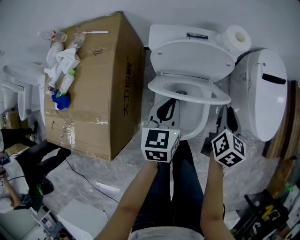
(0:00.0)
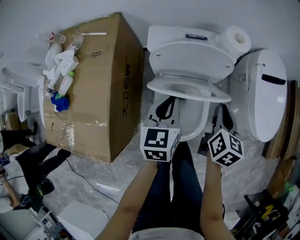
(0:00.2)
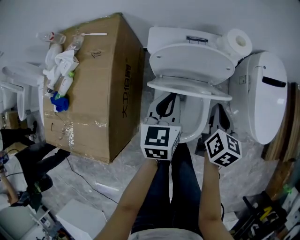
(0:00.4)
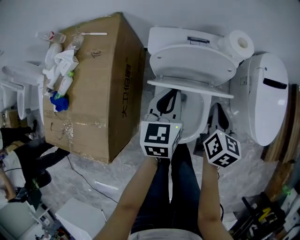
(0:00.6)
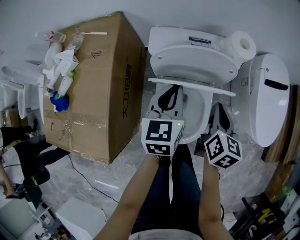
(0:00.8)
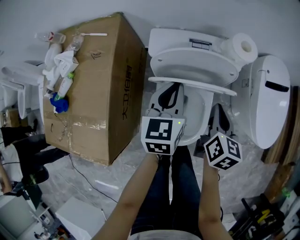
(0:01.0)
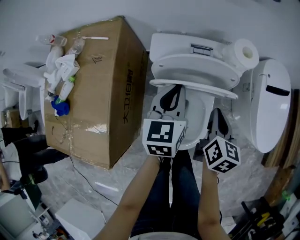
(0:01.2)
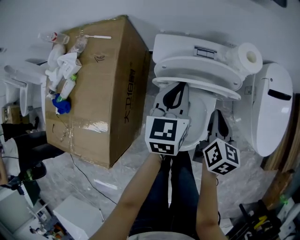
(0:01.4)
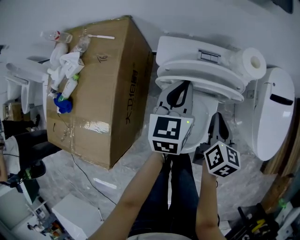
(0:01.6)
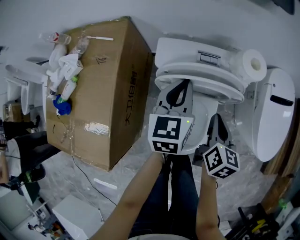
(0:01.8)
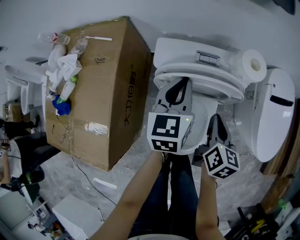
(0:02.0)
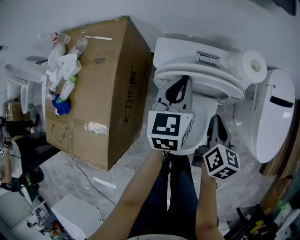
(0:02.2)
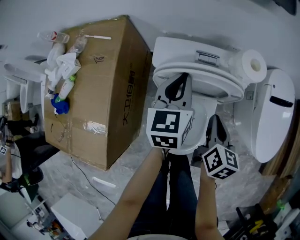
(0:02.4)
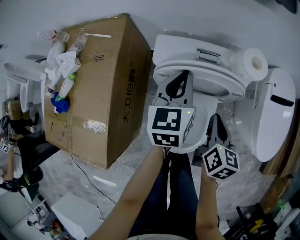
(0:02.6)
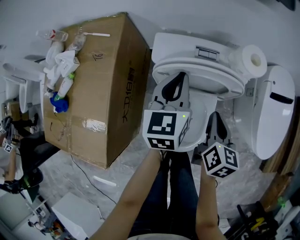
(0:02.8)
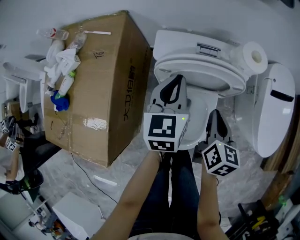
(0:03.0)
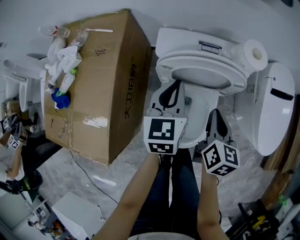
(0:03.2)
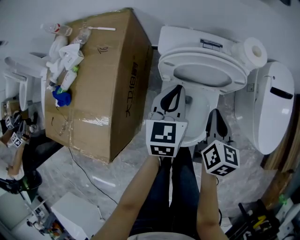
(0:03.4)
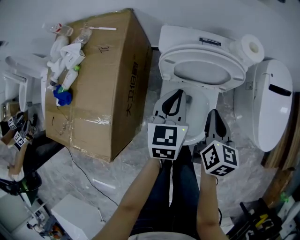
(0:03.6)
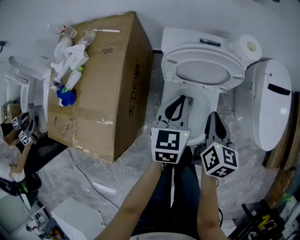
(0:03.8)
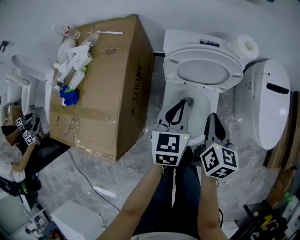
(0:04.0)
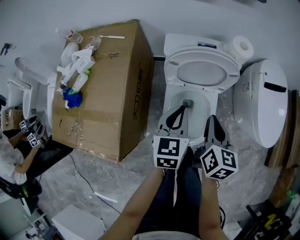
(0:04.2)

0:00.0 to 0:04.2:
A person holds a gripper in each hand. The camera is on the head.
0:00.0 to 0:01.4: The right gripper heads to the left, covering some 5 cm, while the left gripper shifts roughly 10 cm forward.
0:01.4 to 0:02.8: The grippers move only a little.
0:02.8 to 0:04.2: The left gripper shifts about 20 cm backward, while the right gripper heads backward and upward, covering some 15 cm.

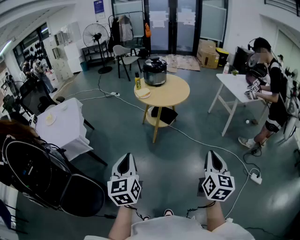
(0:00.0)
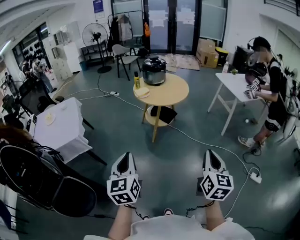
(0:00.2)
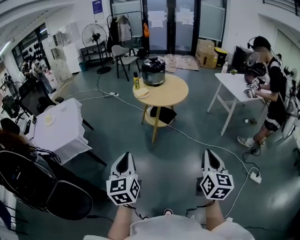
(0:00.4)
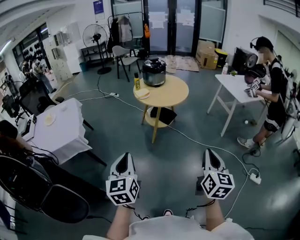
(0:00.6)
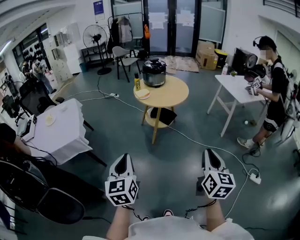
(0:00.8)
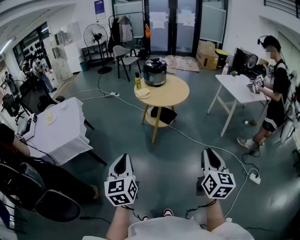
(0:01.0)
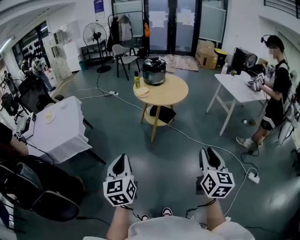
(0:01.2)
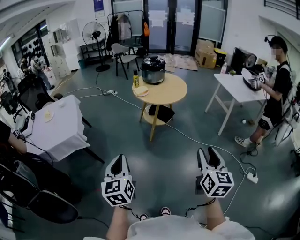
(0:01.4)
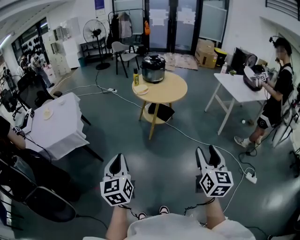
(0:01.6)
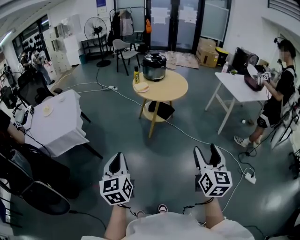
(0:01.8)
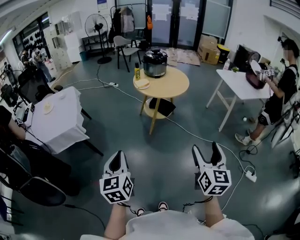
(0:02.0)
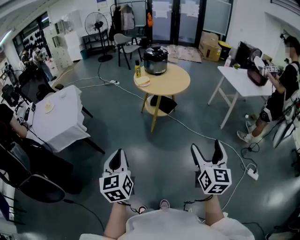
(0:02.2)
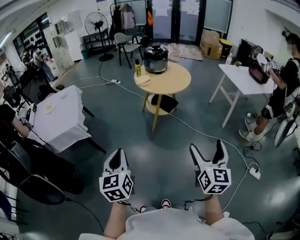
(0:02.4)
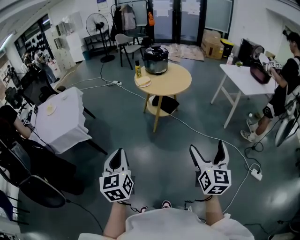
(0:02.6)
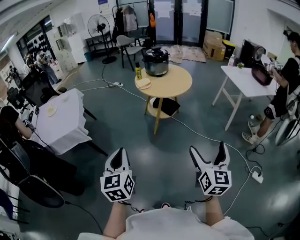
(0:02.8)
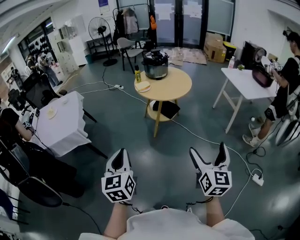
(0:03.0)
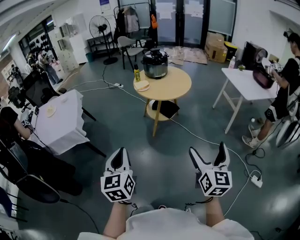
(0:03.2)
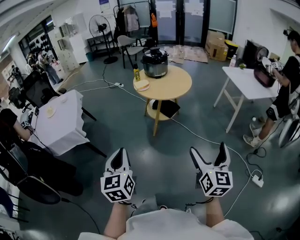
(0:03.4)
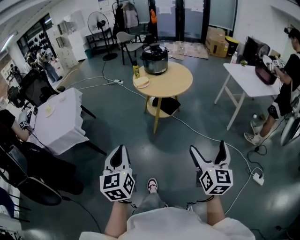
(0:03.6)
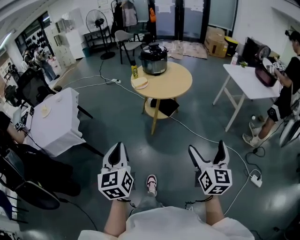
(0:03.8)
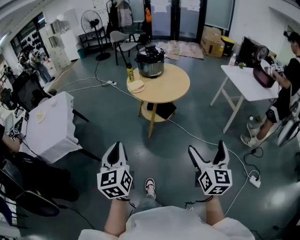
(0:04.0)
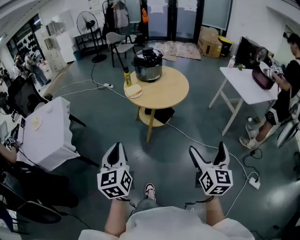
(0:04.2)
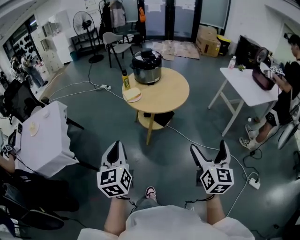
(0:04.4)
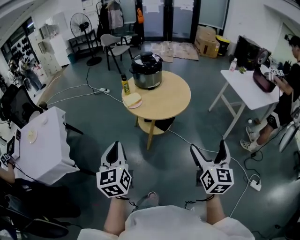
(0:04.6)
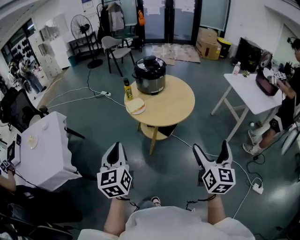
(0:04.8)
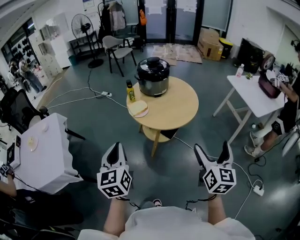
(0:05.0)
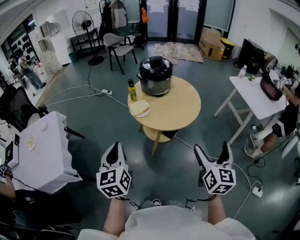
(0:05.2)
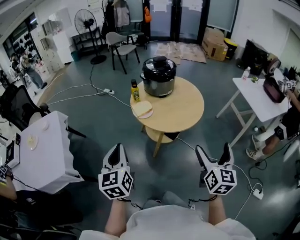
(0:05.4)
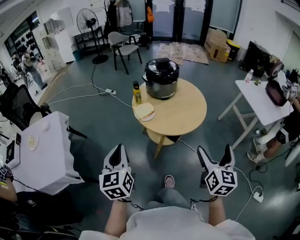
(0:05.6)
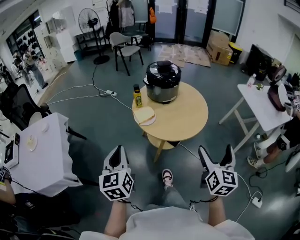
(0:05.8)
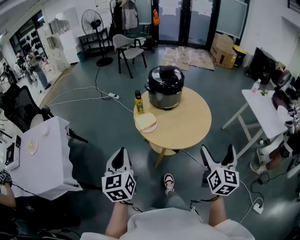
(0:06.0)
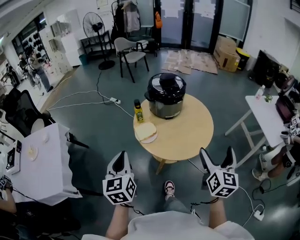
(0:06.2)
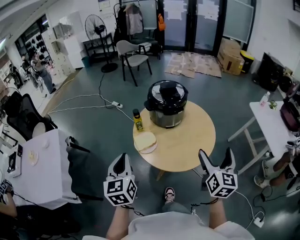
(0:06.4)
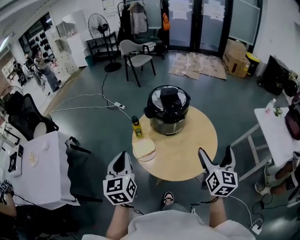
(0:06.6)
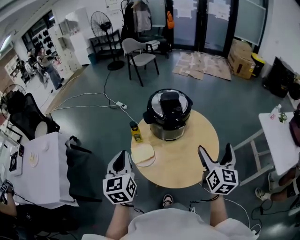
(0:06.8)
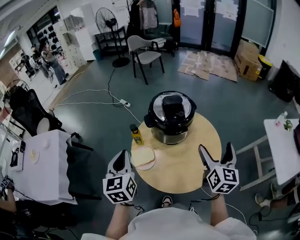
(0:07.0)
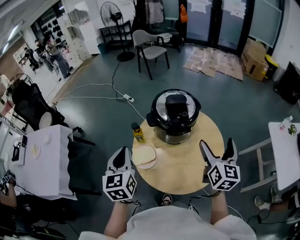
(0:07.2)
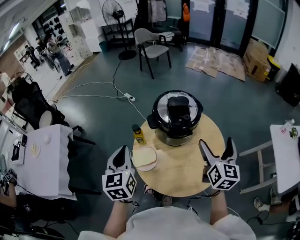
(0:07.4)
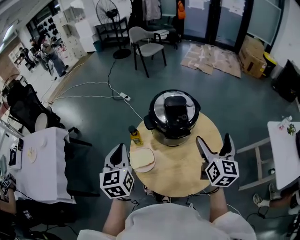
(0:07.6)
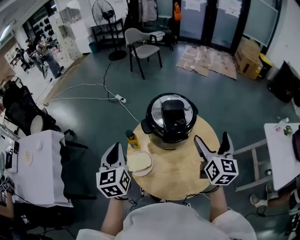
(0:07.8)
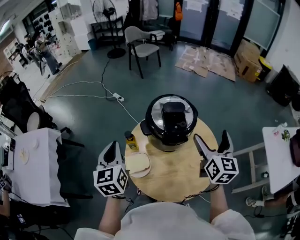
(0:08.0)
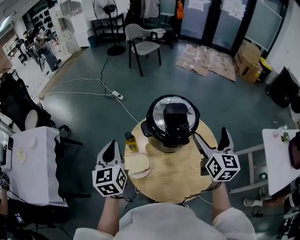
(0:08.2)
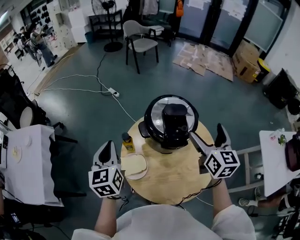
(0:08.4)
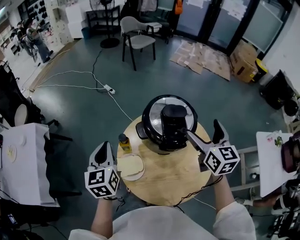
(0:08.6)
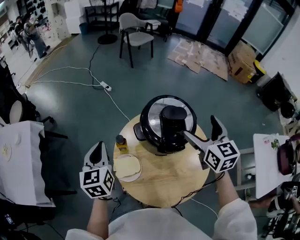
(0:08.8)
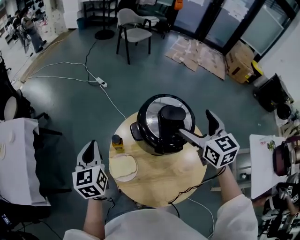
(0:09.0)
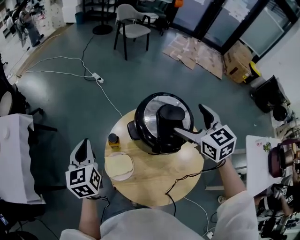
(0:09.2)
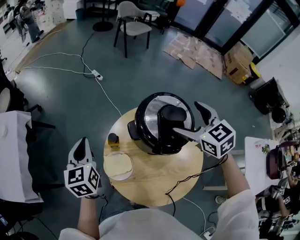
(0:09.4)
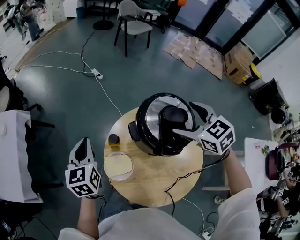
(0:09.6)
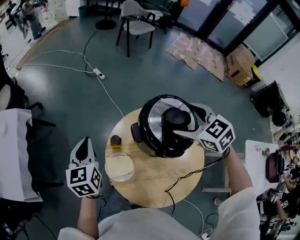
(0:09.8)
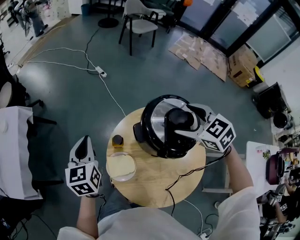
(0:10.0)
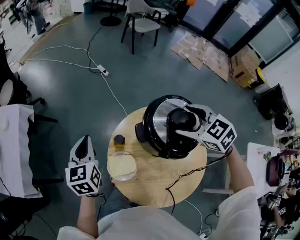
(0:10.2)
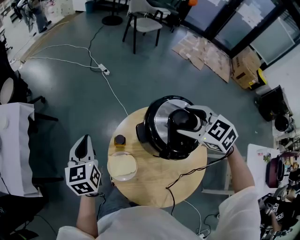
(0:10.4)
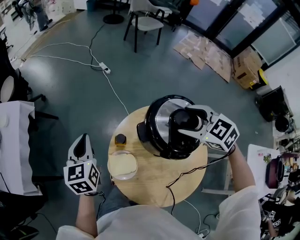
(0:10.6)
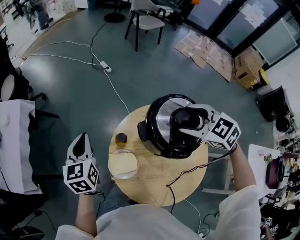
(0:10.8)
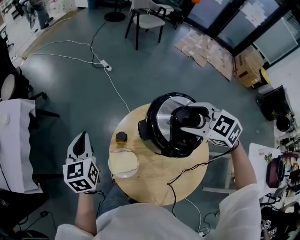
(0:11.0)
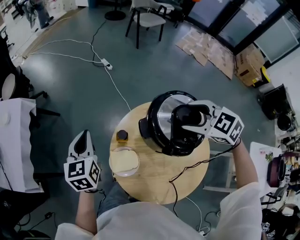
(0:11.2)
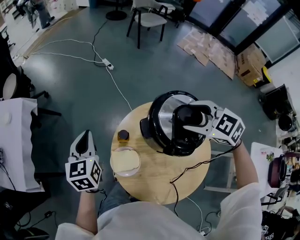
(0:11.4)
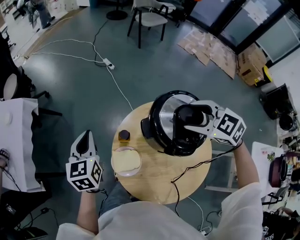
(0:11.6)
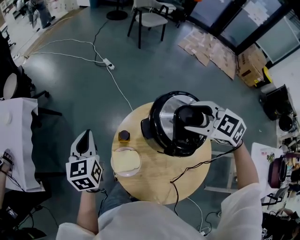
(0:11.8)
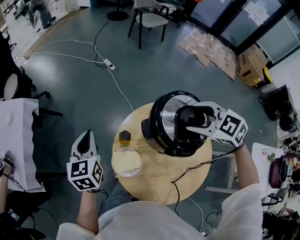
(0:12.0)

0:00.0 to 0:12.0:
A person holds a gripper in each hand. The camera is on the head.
0:00.0 to 0:01.6: The right gripper opens up.
0:01.6 to 0:03.0: The two grippers go roughly 5 cm to the right. The right gripper opens.
0:03.0 to 0:04.4: The two grippers go approximately 25 cm forward.
0:04.4 to 0:06.0: The two grippers go roughly 25 cm forward.
0:06.0 to 0:07.6: The grippers both shift forward by about 35 cm.
0:07.6 to 0:09.0: The left gripper is displaced forward, to the left and downward by about 15 cm; the right gripper travels forward and to the left by approximately 15 cm, and turns by roughly 30 degrees.
0:09.0 to 0:10.4: The left gripper shifts by approximately 5 cm, while the right gripper heads forward, downward and to the left, covering approximately 10 cm, turns by approximately 50 degrees, and closes its fingers.
0:10.4 to 0:12.0: The grippers stay close to where they were, moving slightly.

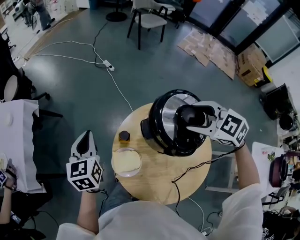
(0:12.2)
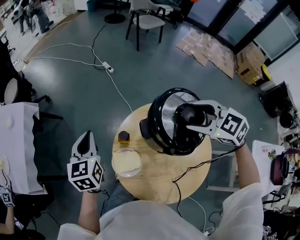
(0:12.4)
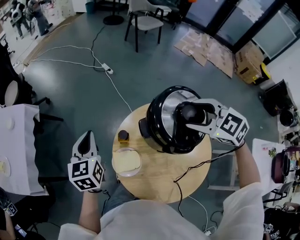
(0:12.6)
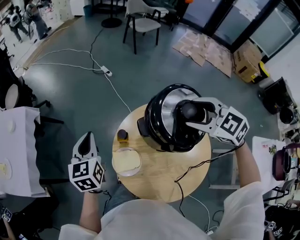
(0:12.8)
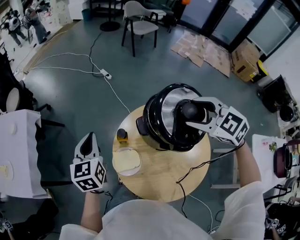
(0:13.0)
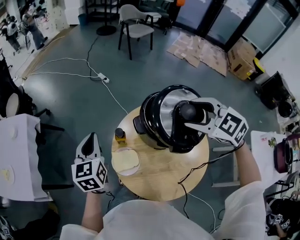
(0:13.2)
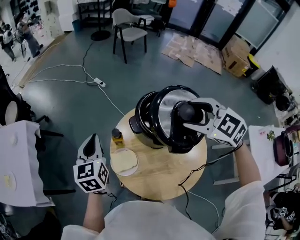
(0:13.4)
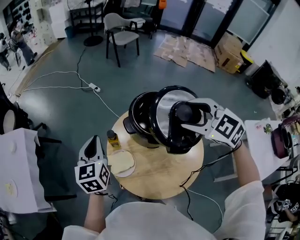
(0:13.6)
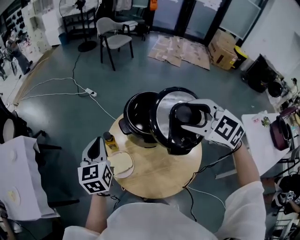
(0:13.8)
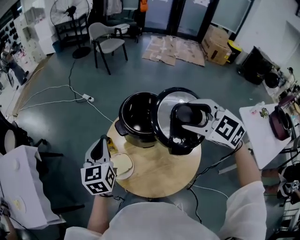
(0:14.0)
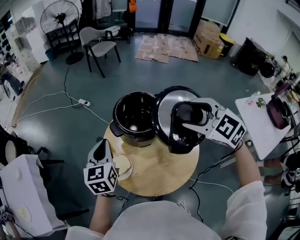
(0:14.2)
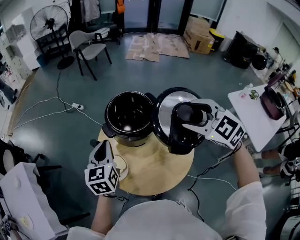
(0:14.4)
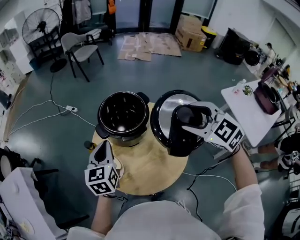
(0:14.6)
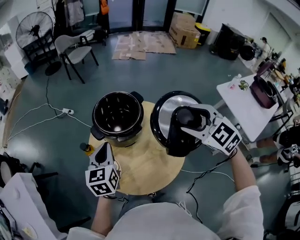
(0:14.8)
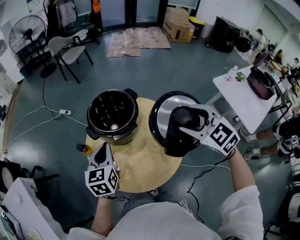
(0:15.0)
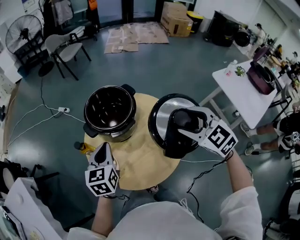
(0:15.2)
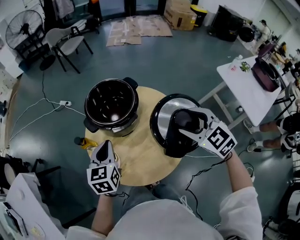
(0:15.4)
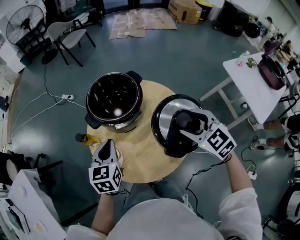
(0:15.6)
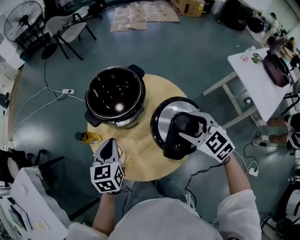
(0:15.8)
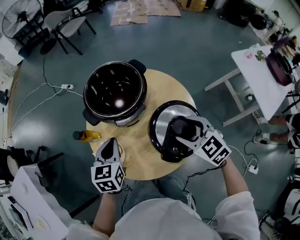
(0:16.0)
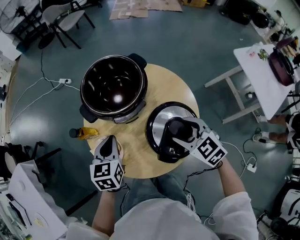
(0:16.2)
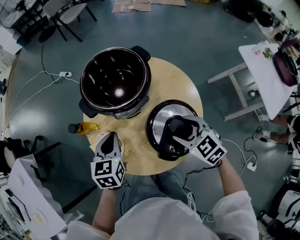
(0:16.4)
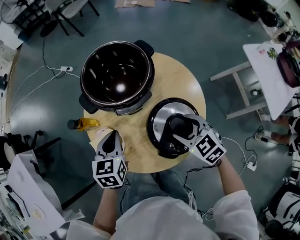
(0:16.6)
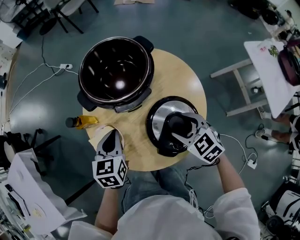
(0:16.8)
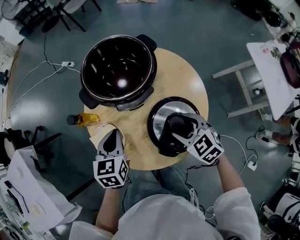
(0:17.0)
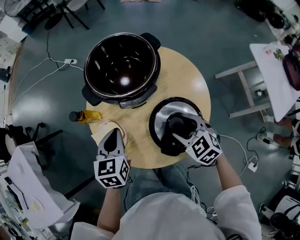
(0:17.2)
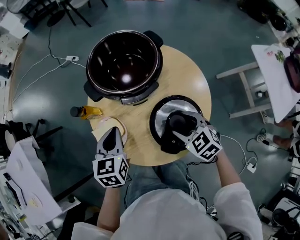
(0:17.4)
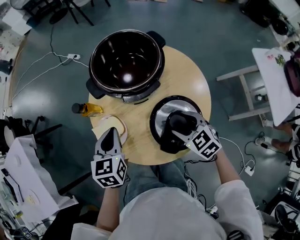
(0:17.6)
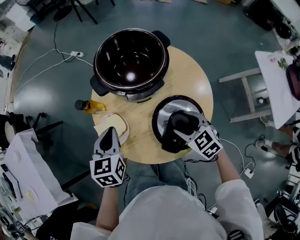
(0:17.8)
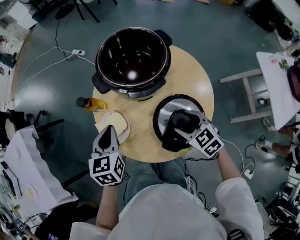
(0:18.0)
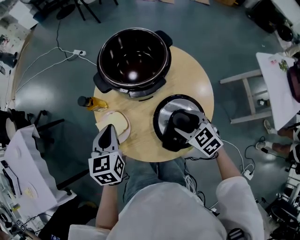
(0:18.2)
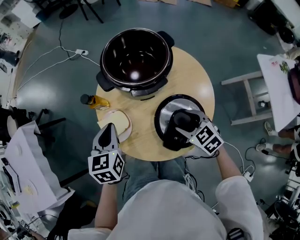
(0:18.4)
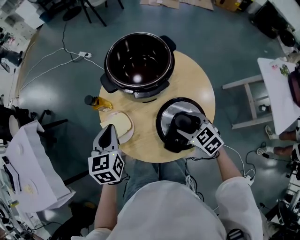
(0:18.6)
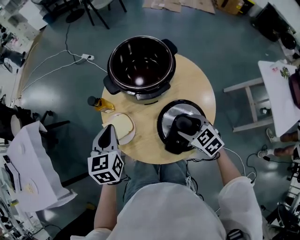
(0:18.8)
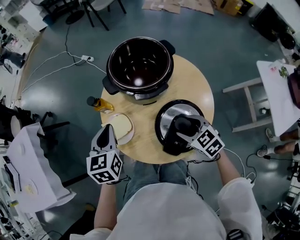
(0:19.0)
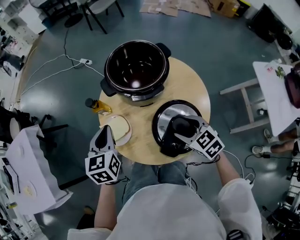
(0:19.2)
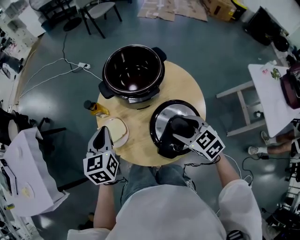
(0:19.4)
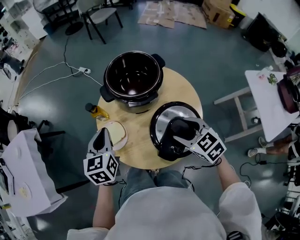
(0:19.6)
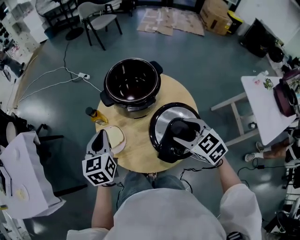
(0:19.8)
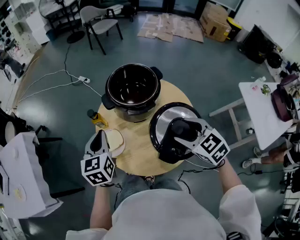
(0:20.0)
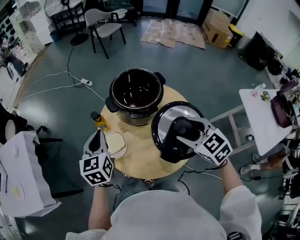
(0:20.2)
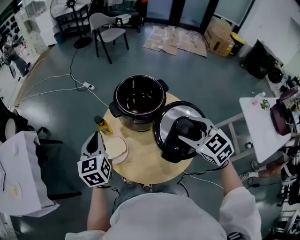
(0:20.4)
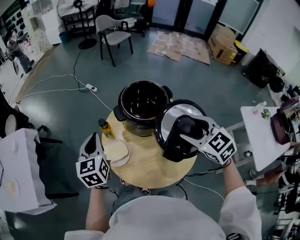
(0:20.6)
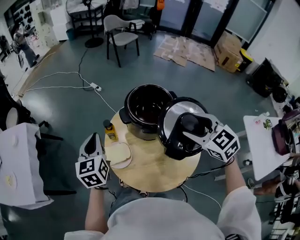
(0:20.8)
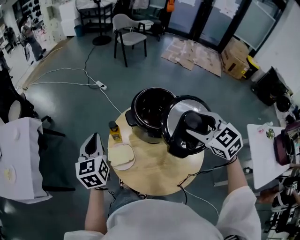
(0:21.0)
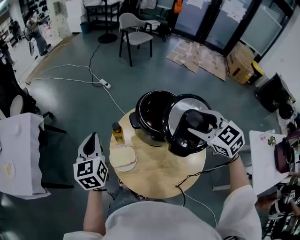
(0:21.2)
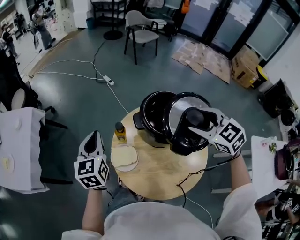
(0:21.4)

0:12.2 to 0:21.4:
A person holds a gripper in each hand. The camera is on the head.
0:12.2 to 0:13.8: The left gripper heads to the right, backward and upward, covering approximately 15 cm. The right gripper shifts about 15 cm backward and upward, and swivels about 20 degrees.
0:13.8 to 0:15.2: The left gripper shifts some 15 cm to the right, and turns by approximately 20 degrees. The right gripper shifts about 20 cm backward, to the right and downward, and swivels about 30 degrees.
0:15.2 to 0:16.8: The right gripper moves downward, about 20 cm; the left gripper travels downward by approximately 10 cm.
0:16.8 to 0:18.4: The left gripper moves to the left, about 5 cm.
0:18.4 to 0:19.8: The right gripper heads upward, covering roughly 15 cm. The left gripper is displaced upward by approximately 5 cm.
0:19.8 to 0:21.4: The left gripper shifts approximately 15 cm to the left, forward and upward. Meanwhile the right gripper heads forward and upward, covering roughly 25 cm, and changes its angle by roughly 20 degrees.
